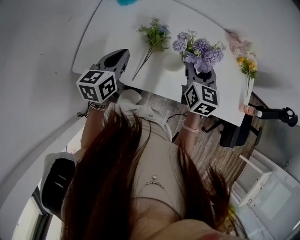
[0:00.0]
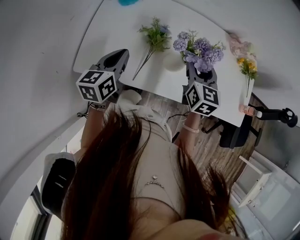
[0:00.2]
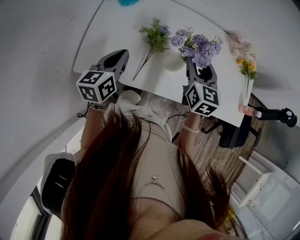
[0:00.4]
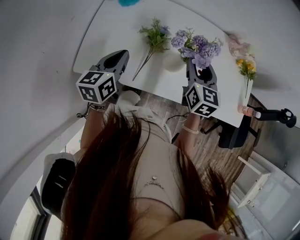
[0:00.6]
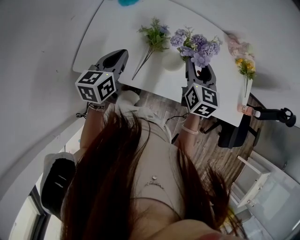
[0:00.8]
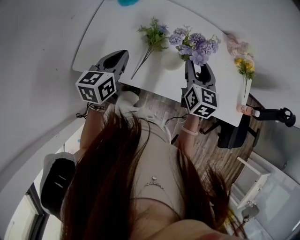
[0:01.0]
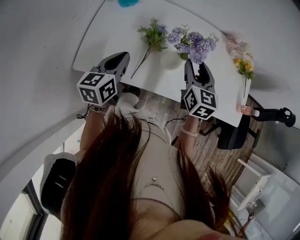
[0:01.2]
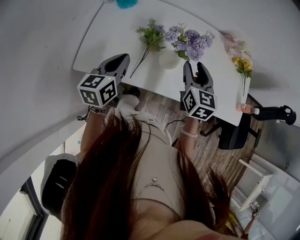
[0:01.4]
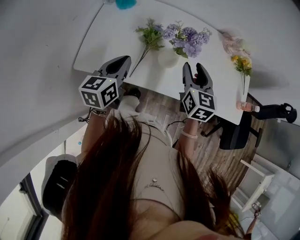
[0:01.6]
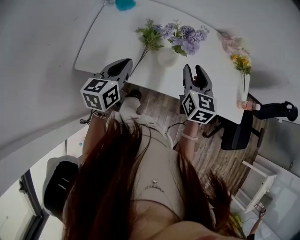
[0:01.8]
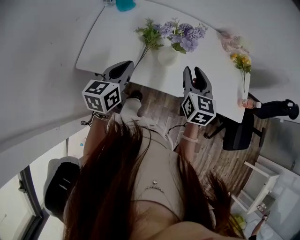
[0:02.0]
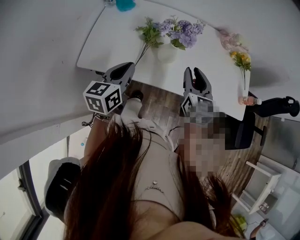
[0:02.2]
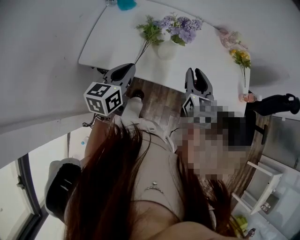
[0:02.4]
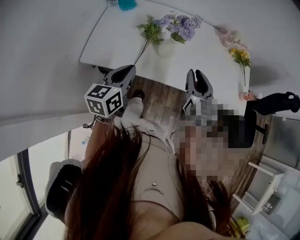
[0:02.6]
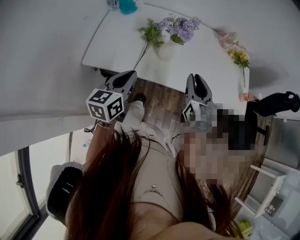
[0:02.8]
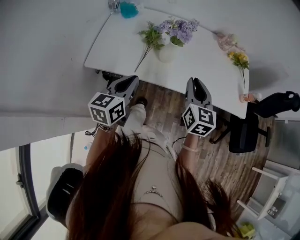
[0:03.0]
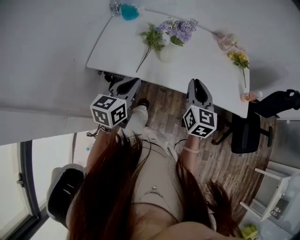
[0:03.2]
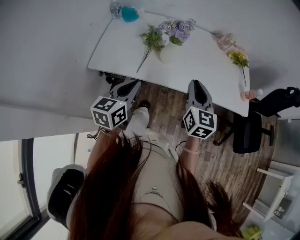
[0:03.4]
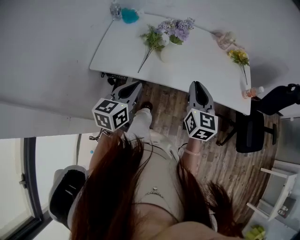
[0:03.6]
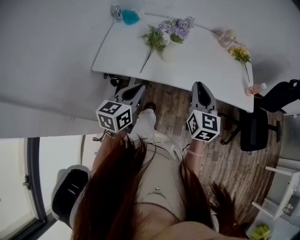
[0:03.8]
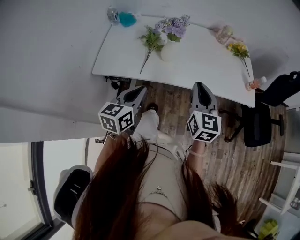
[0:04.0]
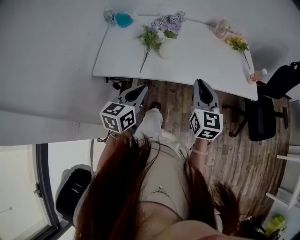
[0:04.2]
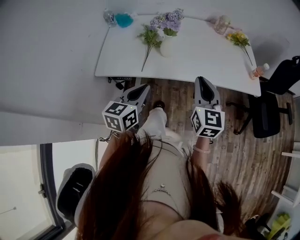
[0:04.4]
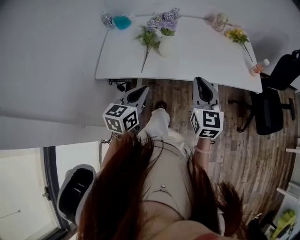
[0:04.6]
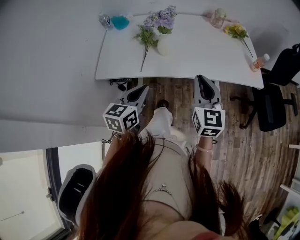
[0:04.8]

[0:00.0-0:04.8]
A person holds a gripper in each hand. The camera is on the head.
0:00.0 to 0:01.6: Both grippers move backward, some 5 cm.
0:01.6 to 0:03.2: The left gripper heads backward and to the right, covering roughly 20 cm. The right gripper heads backward, covering roughly 15 cm, and closes.
0:03.2 to 0:04.8: The right gripper goes about 10 cm backward. The left gripper heads to the right and backward, covering some 5 cm.

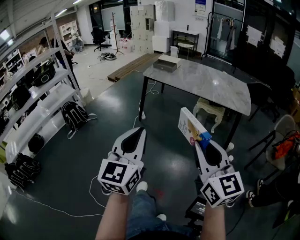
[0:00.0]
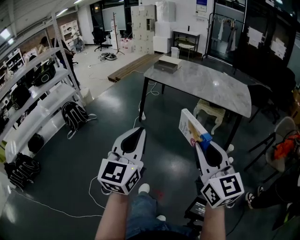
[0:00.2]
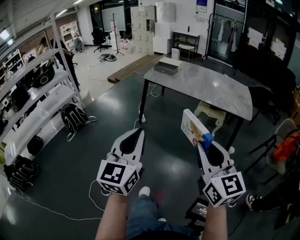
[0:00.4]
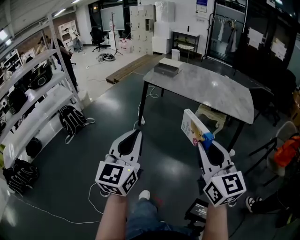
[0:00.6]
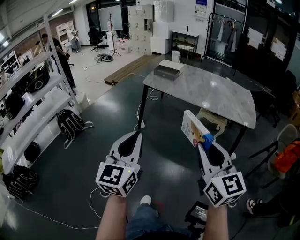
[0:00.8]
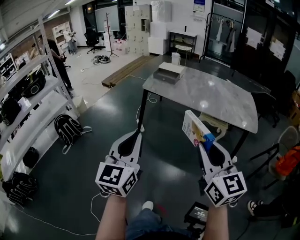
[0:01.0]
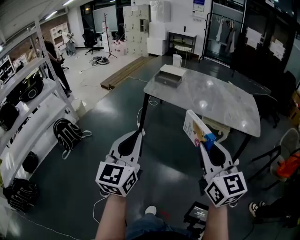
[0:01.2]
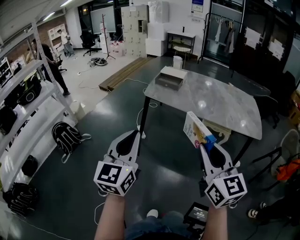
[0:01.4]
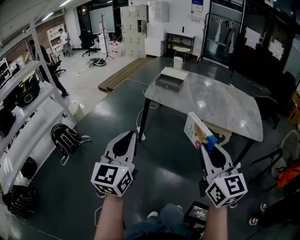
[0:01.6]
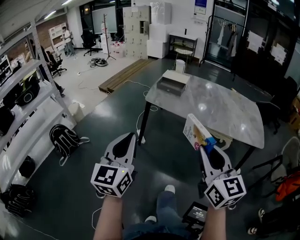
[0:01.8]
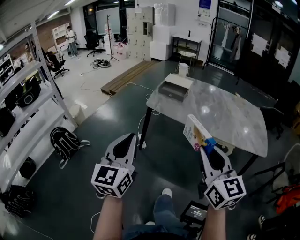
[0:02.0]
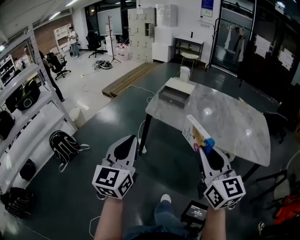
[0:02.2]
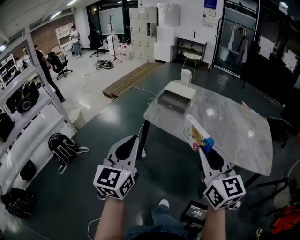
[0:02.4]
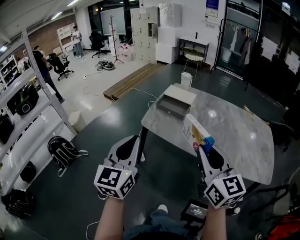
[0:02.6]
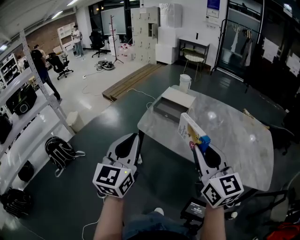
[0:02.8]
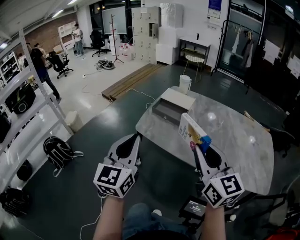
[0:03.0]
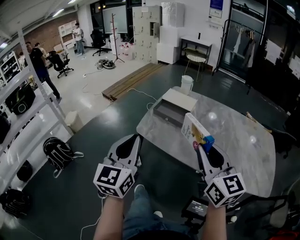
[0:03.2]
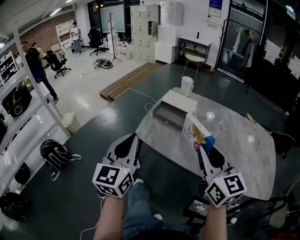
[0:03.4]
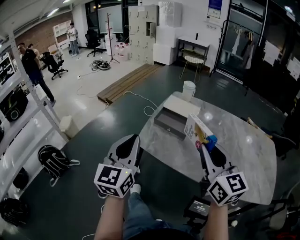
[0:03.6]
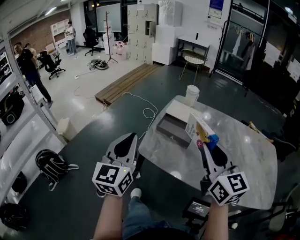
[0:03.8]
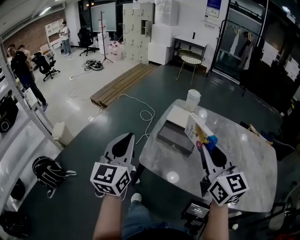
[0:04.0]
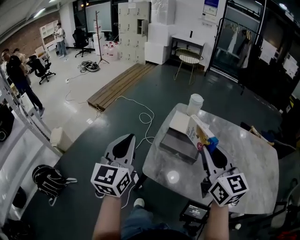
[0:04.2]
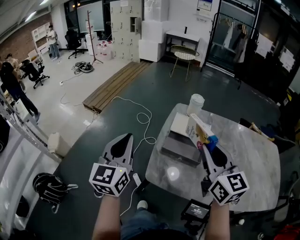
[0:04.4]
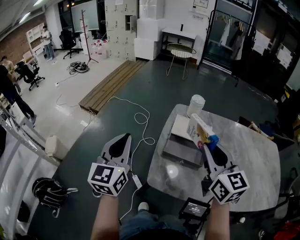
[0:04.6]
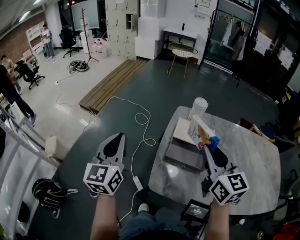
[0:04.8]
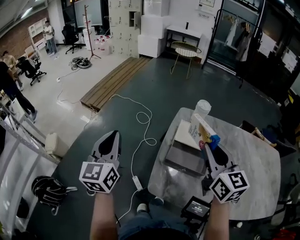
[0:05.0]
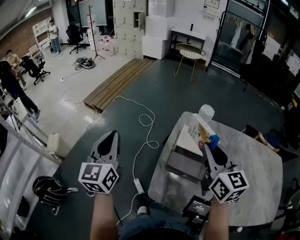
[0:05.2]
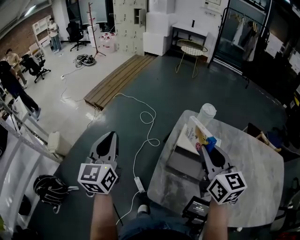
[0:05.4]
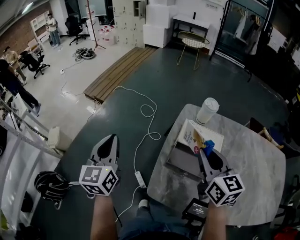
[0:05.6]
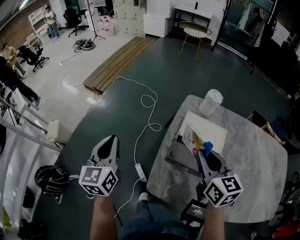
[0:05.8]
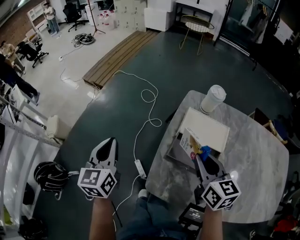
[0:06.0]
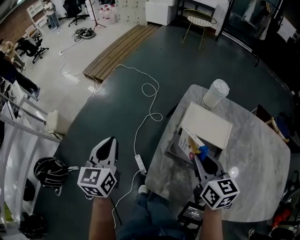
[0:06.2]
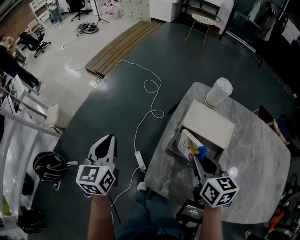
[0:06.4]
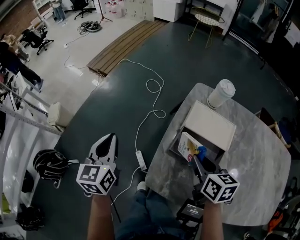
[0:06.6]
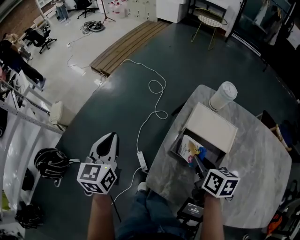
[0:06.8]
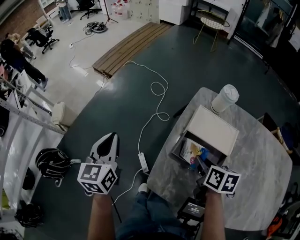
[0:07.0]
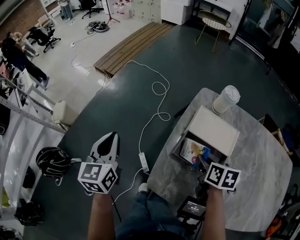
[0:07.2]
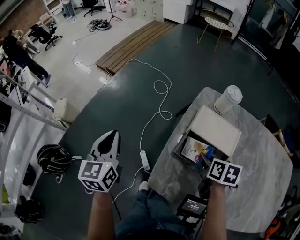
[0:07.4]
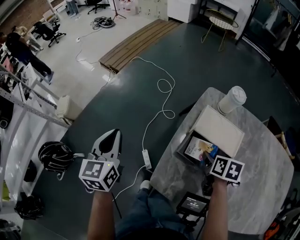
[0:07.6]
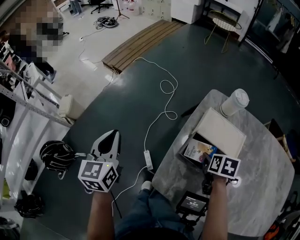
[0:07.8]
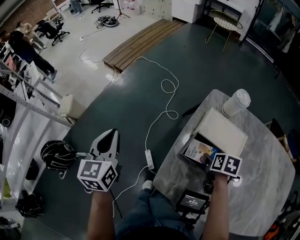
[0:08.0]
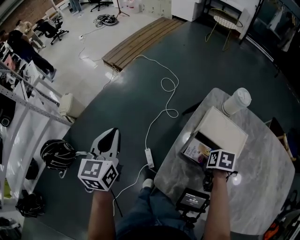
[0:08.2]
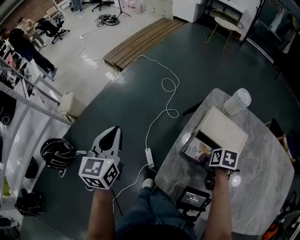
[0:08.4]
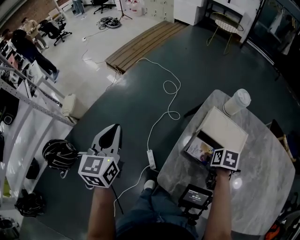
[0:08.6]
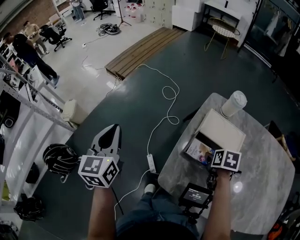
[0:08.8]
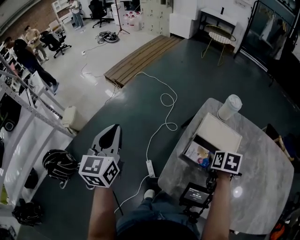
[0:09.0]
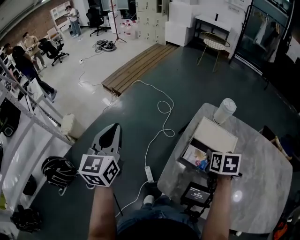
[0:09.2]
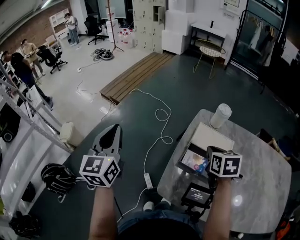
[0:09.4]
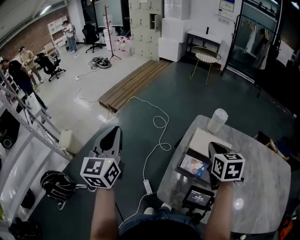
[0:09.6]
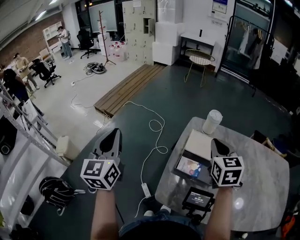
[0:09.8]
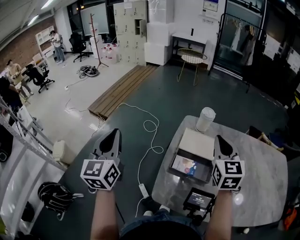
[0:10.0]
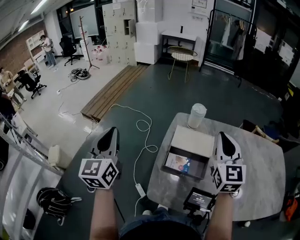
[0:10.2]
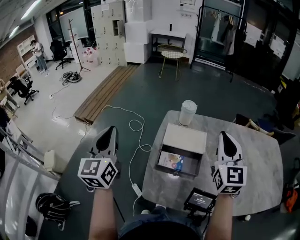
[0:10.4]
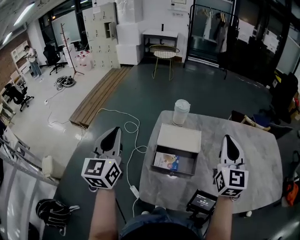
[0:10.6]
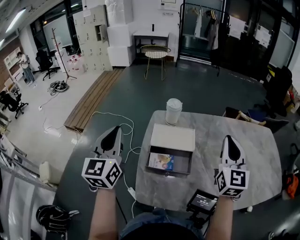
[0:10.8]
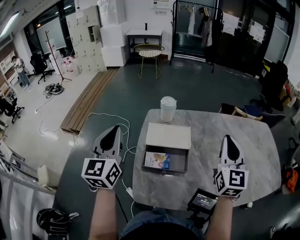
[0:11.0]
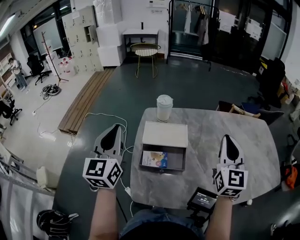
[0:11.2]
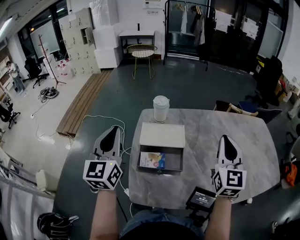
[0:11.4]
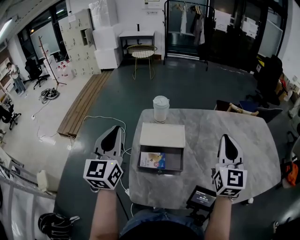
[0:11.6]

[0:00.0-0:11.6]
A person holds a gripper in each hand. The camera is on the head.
0:00.0 to 0:01.4: The left gripper heads forward and to the left, covering roughly 30 cm. Meanwhile the right gripper travels forward by some 25 cm.
0:01.4 to 0:02.8: Both grippers travel together forward, approximately 30 cm.
0:02.8 to 0:04.4: Both grippers move forward, some 35 cm.
0:04.4 to 0:05.8: The left gripper is displaced forward, downward and to the left by approximately 15 cm; the right gripper travels downward and forward by roughly 15 cm.
0:05.8 to 0:07.2: The right gripper goes roughly 15 cm downward, and angles its fingers downward, by about 30 degrees.
0:07.2 to 0:08.8: The left gripper shifts by some 5 cm. The right gripper opens its fingers.
0:08.8 to 0:10.2: The left gripper is displaced upward and to the right by some 10 cm, and swivels roughly 20 degrees, while the right gripper shifts roughly 30 cm upward, tips its fingers upward by about 60 degrees, and closes up.
0:10.2 to 0:11.6: The right gripper shifts some 15 cm to the right, and turns by some 20 degrees. The left gripper heads to the right and forward, covering roughly 15 cm.

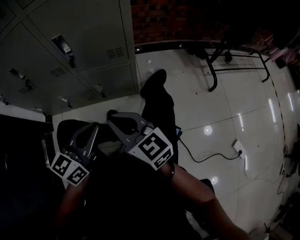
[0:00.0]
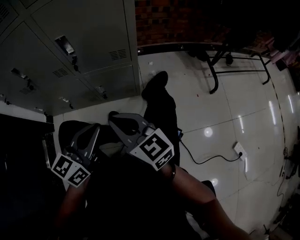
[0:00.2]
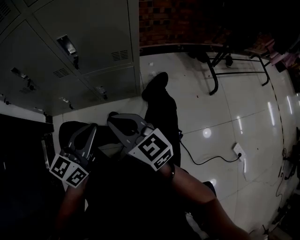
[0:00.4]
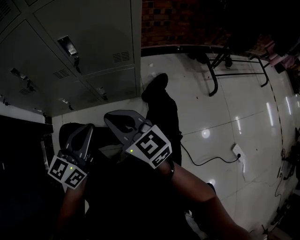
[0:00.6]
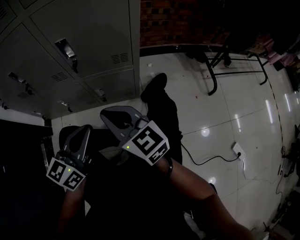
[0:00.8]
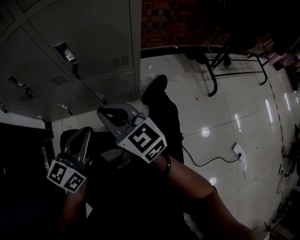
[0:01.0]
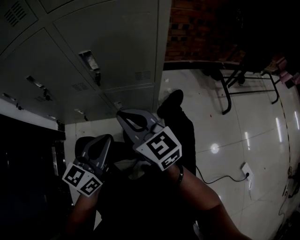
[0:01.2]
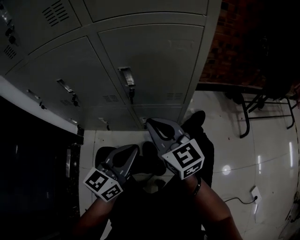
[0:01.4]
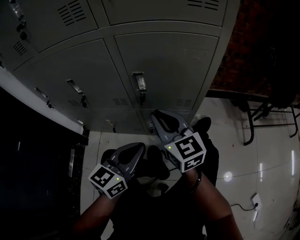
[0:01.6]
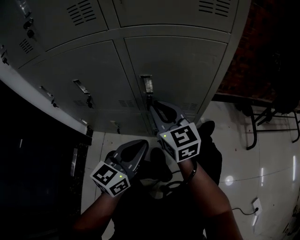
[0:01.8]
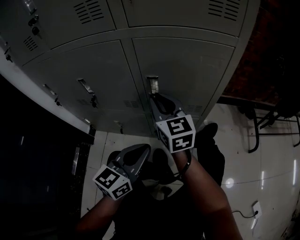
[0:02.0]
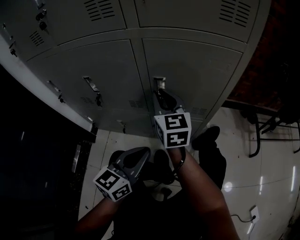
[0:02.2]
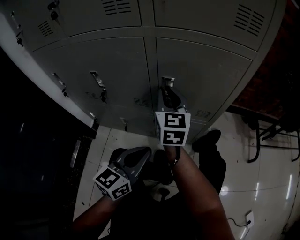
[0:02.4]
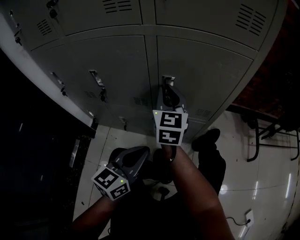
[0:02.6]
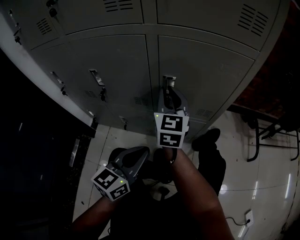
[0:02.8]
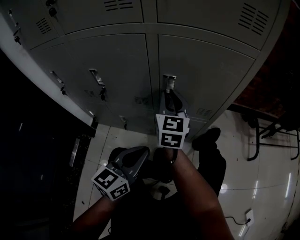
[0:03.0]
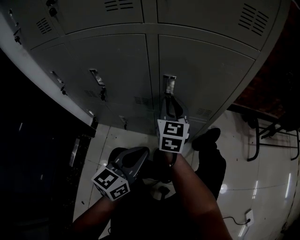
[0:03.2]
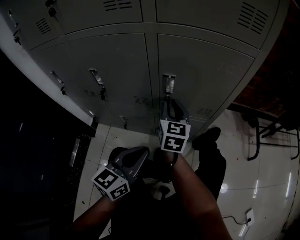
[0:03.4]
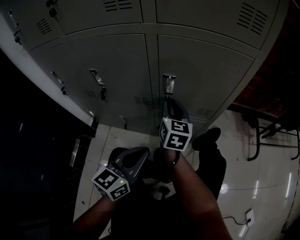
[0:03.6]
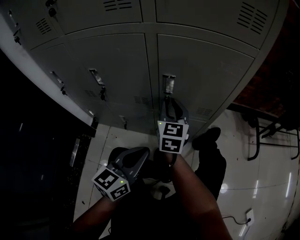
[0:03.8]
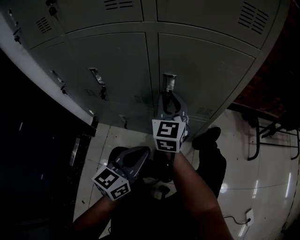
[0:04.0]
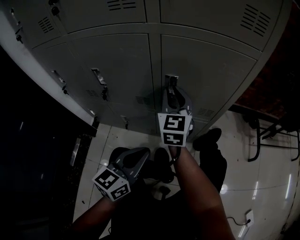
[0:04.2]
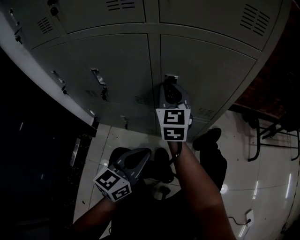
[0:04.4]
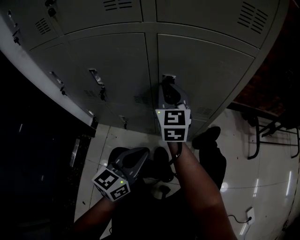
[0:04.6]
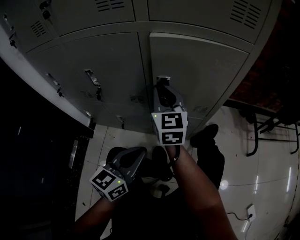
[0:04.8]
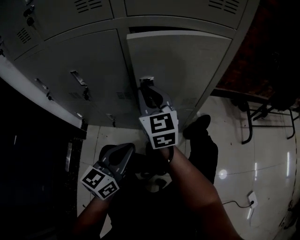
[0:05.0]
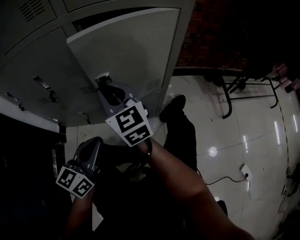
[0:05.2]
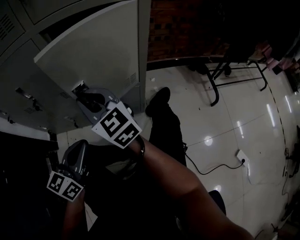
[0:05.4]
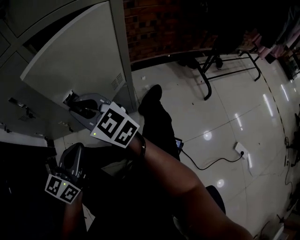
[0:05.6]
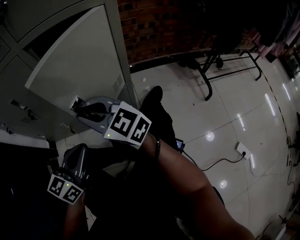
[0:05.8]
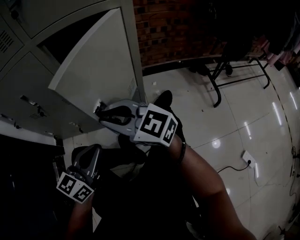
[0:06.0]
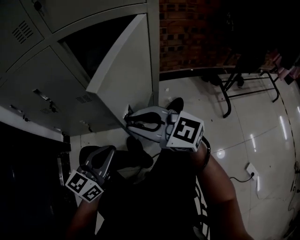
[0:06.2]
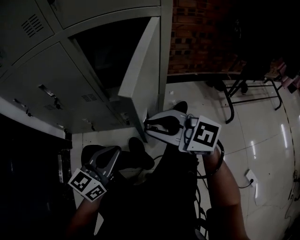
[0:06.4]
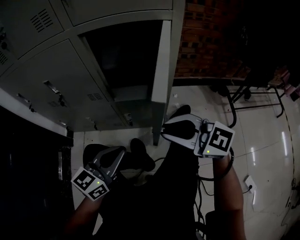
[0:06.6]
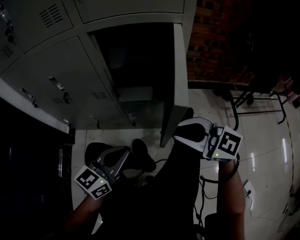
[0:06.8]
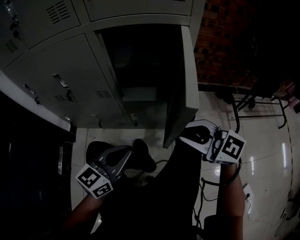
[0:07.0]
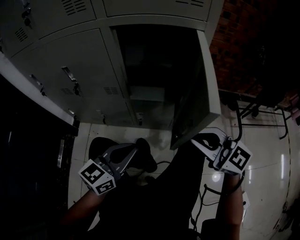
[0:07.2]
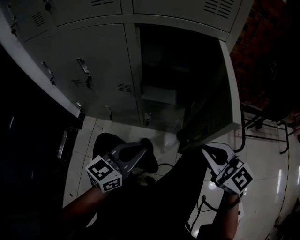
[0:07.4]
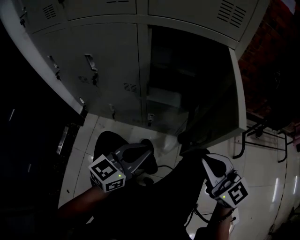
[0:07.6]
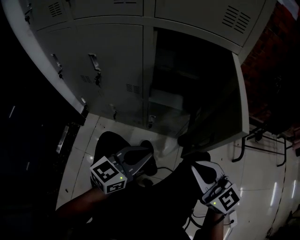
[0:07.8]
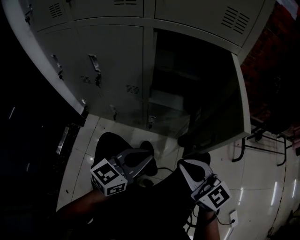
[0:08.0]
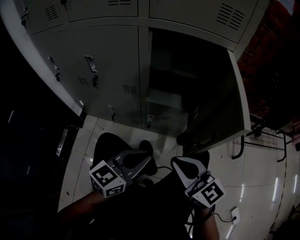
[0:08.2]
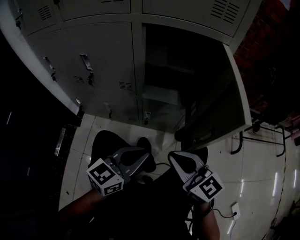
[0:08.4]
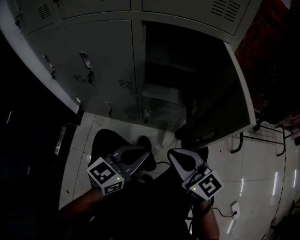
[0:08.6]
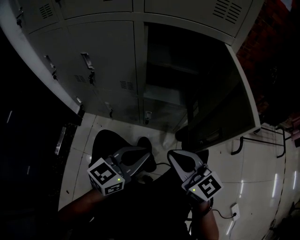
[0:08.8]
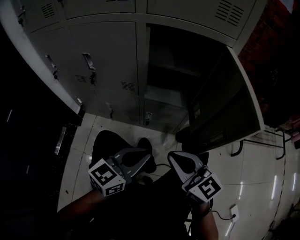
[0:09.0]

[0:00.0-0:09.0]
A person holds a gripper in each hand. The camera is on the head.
0:00.0 to 0:01.6: The right gripper goes about 15 cm forward, while the left gripper moves forward and to the left, some 10 cm.
0:01.6 to 0:03.0: The right gripper goes roughly 10 cm forward and to the left, and rotates approximately 20 degrees. Meanwhile the left gripper moves to the left, approximately 5 cm.
0:03.0 to 0:04.4: The right gripper goes downward and returns, some 5 cm each way.
0:04.4 to 0:06.0: The left gripper moves to the right, about 5 cm; the right gripper goes some 20 cm backward and to the right, and changes its angle by about 40 degrees.
0:06.0 to 0:07.6: The right gripper moves to the right and backward, about 15 cm.
0:07.6 to 0:09.0: The right gripper shifts roughly 10 cm to the left.
